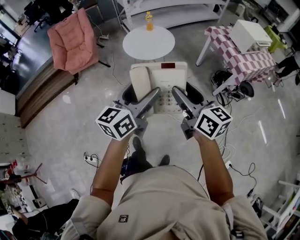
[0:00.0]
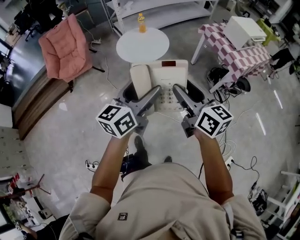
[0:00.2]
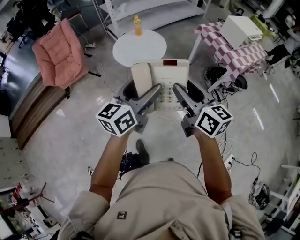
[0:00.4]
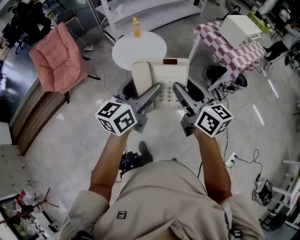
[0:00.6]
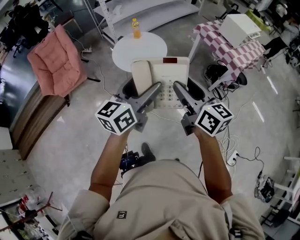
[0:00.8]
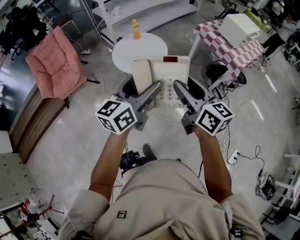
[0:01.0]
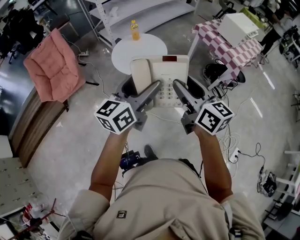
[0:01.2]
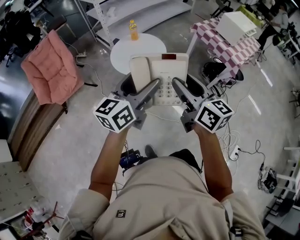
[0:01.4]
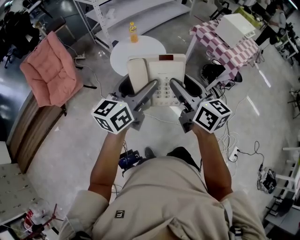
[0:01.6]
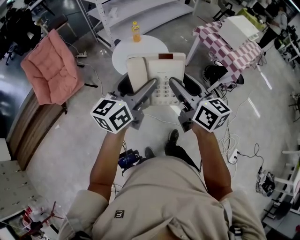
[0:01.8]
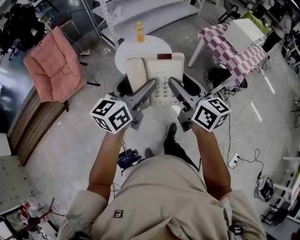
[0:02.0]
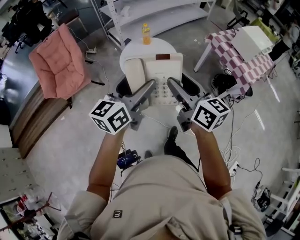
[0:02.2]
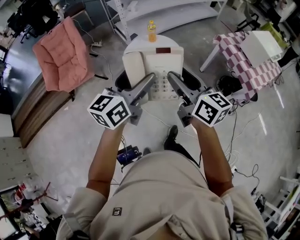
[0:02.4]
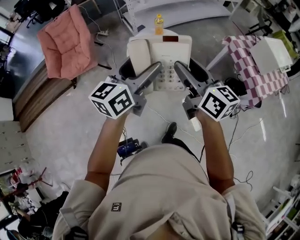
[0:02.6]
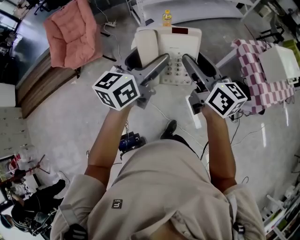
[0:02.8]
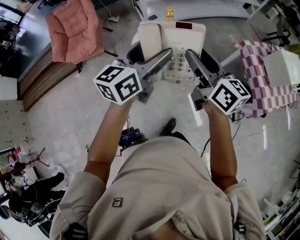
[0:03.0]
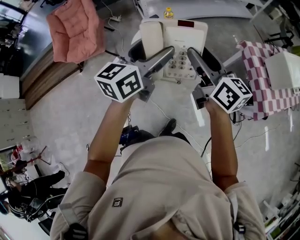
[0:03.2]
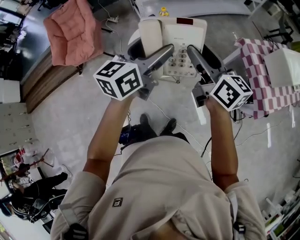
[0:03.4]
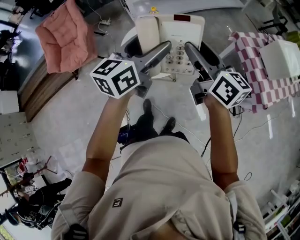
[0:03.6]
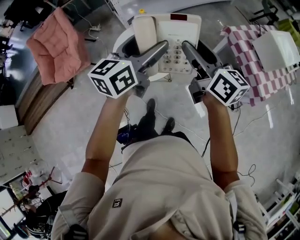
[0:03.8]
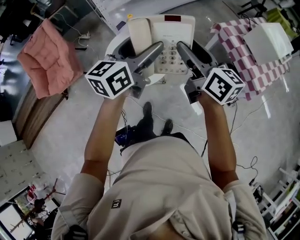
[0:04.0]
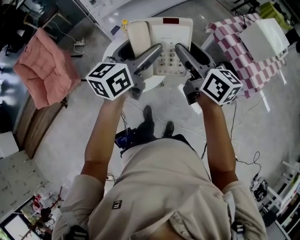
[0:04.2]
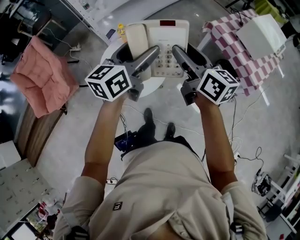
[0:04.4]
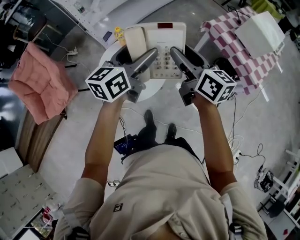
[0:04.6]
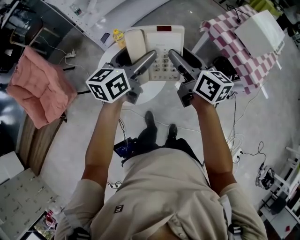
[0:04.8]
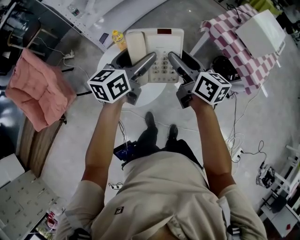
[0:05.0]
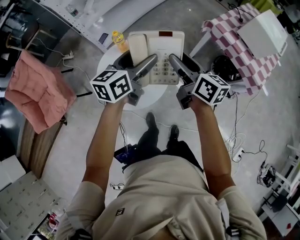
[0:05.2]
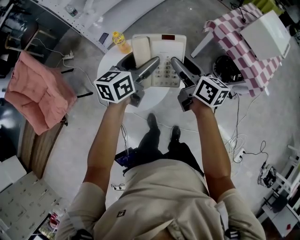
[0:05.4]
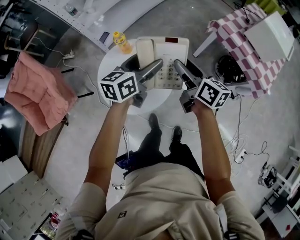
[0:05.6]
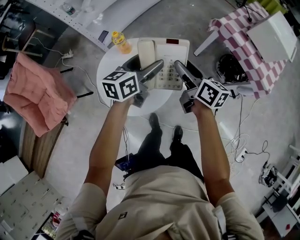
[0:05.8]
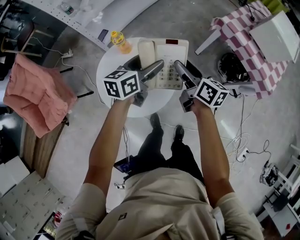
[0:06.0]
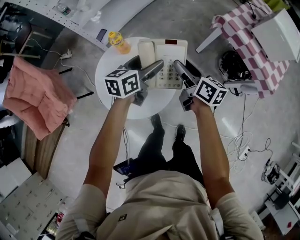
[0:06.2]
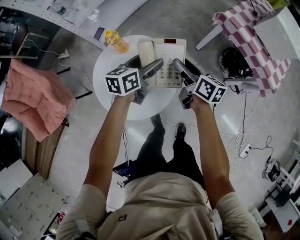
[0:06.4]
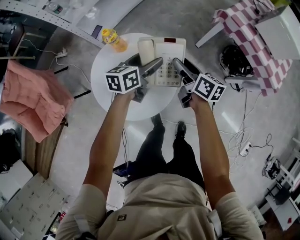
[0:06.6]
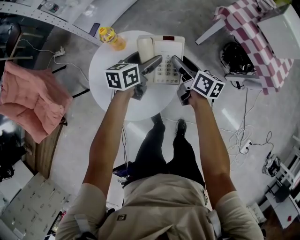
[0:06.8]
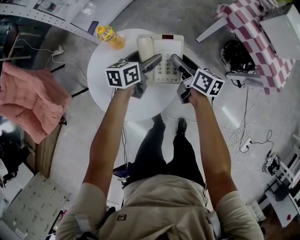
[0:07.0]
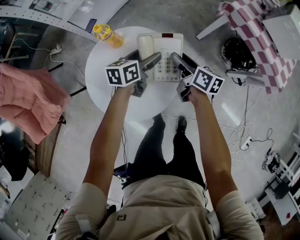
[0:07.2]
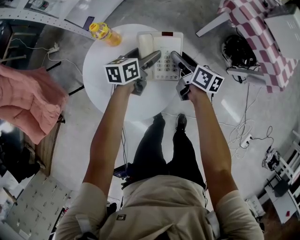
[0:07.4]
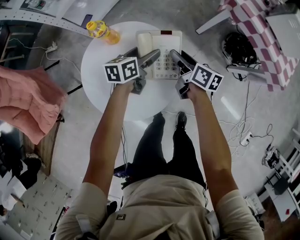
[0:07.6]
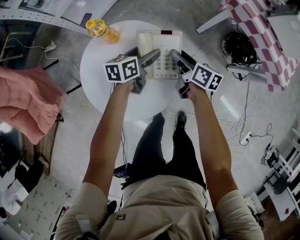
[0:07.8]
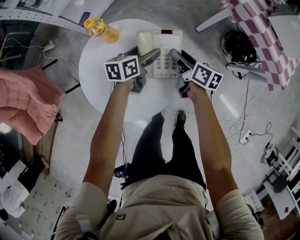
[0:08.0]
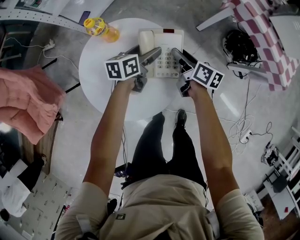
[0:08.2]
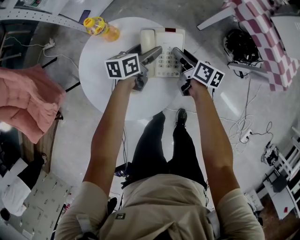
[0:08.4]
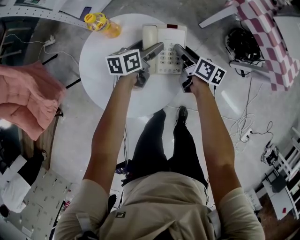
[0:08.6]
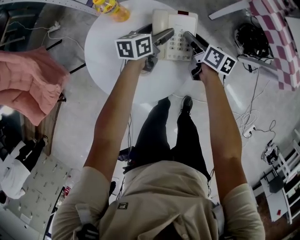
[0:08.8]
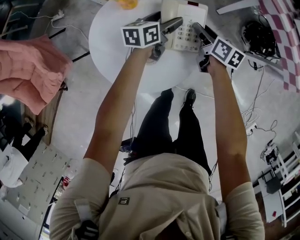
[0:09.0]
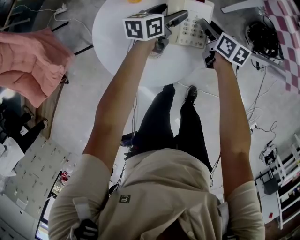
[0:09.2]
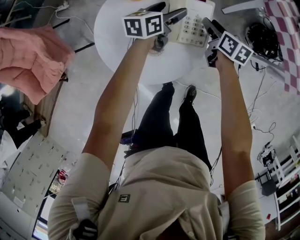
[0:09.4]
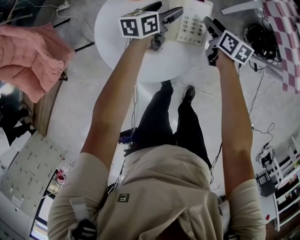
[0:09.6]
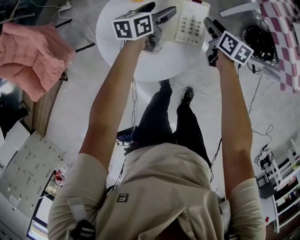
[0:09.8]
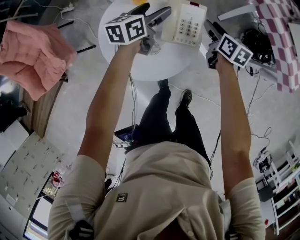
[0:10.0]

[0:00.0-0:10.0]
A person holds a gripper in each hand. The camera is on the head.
0:00.0 to 0:01.4: Both grippers move forward and to the left, roughly 20 cm.
0:01.4 to 0:02.8: Both grippers travel together forward, about 25 cm.
0:02.8 to 0:04.2: The grippers both shift forward and to the right by some 15 cm.
0:04.2 to 0:05.8: Both grippers travel together downward and forward, about 25 cm. The right gripper changes its angle by roughly 20 degrees.
0:05.8 to 0:07.2: Both grippers move downward, roughly 20 cm.
0:07.2 to 0:08.6: Both grippers move downward, about 10 cm.
0:08.6 to 0:10.0: The right gripper shifts about 10 cm upward, and swivels roughly 20 degrees. The left gripper moves upward and to the left, roughly 15 cm.

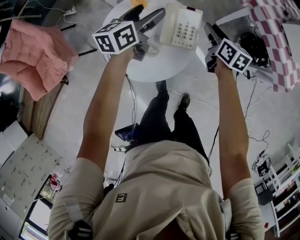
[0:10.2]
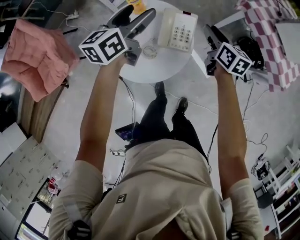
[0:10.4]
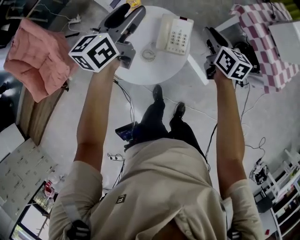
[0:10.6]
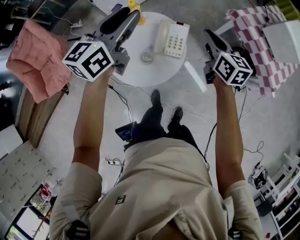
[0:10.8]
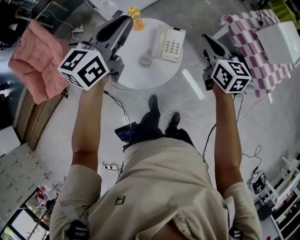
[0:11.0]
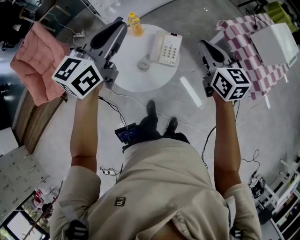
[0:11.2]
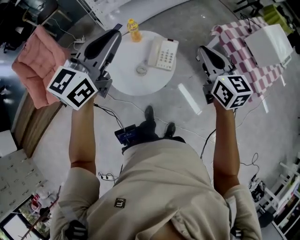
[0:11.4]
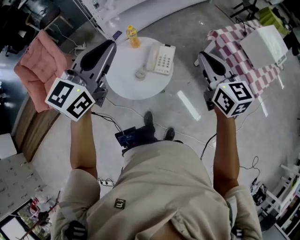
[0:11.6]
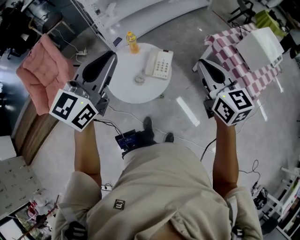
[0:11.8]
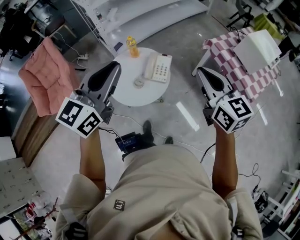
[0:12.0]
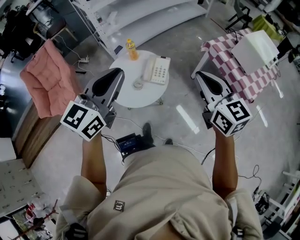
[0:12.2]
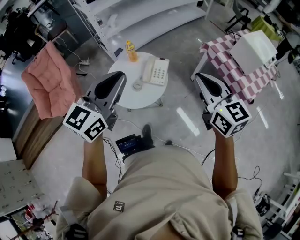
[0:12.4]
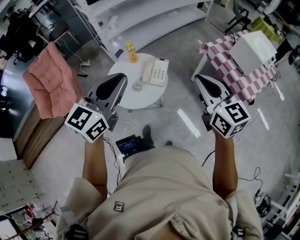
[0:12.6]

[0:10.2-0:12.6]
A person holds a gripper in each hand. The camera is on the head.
0:10.2 to 0:11.4: The two grippers go roughly 40 cm upward and backward. The left gripper changes its angle by roughly 30 degrees, and closes up, while the right gripper turns by roughly 30 degrees, and closes.
0:11.4 to 0:12.6: The right gripper shifts roughly 15 cm backward and upward. The left gripper heads backward and to the right, covering some 15 cm.

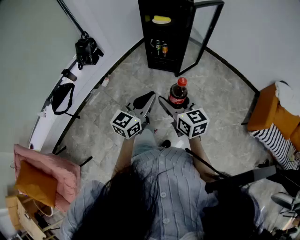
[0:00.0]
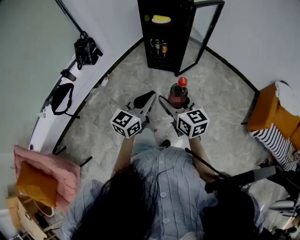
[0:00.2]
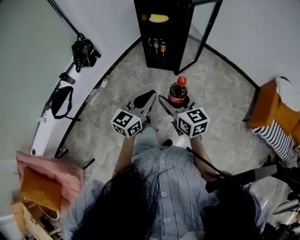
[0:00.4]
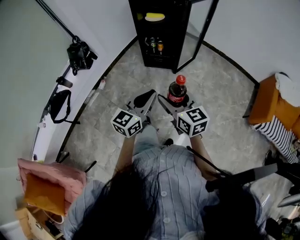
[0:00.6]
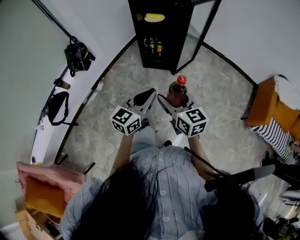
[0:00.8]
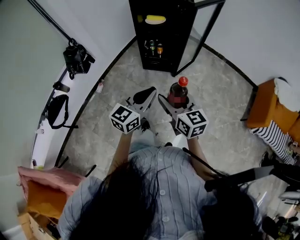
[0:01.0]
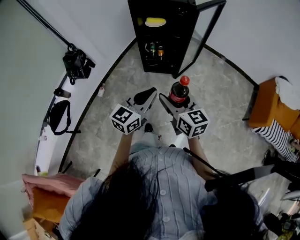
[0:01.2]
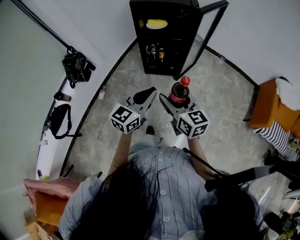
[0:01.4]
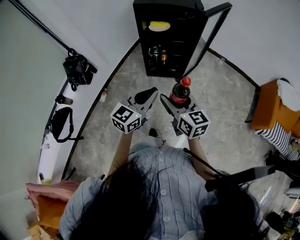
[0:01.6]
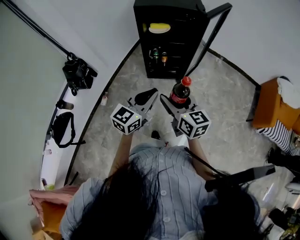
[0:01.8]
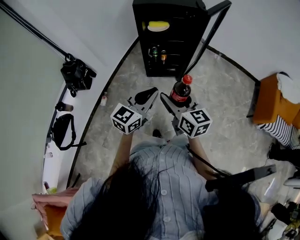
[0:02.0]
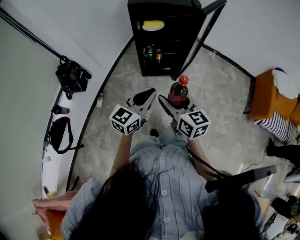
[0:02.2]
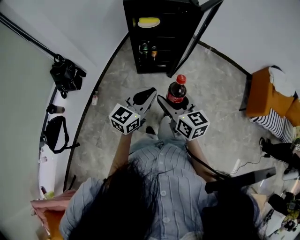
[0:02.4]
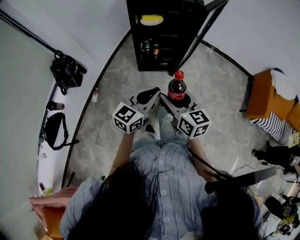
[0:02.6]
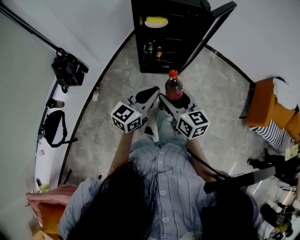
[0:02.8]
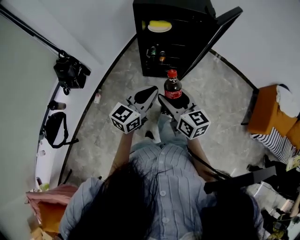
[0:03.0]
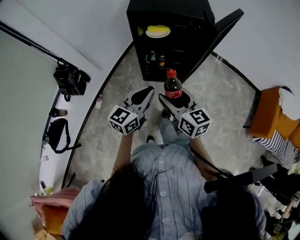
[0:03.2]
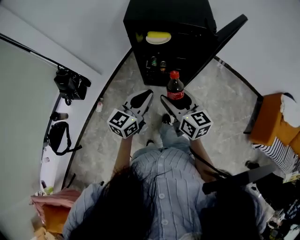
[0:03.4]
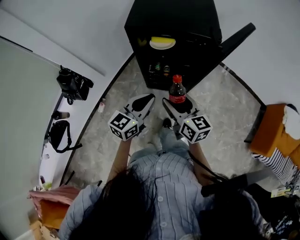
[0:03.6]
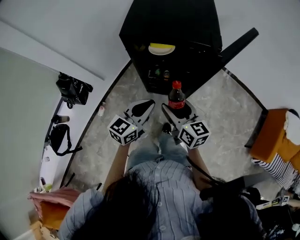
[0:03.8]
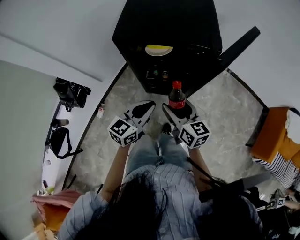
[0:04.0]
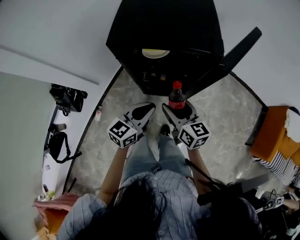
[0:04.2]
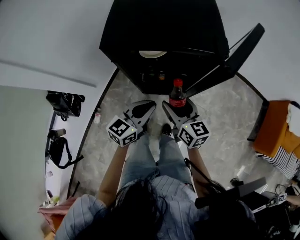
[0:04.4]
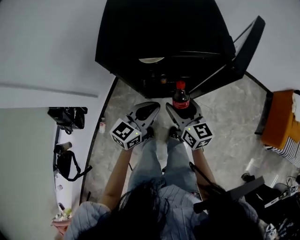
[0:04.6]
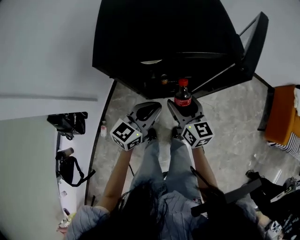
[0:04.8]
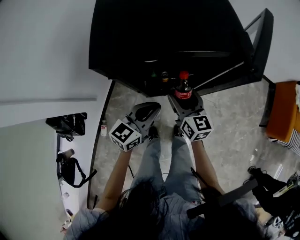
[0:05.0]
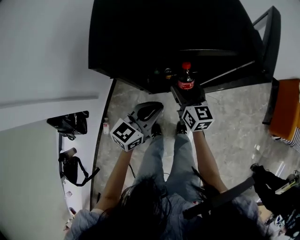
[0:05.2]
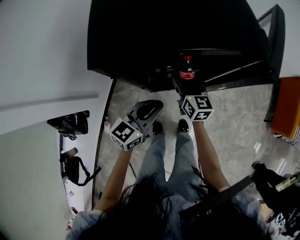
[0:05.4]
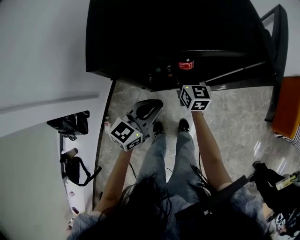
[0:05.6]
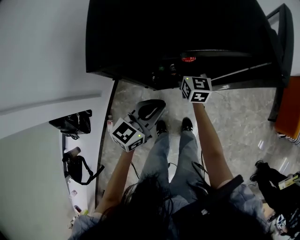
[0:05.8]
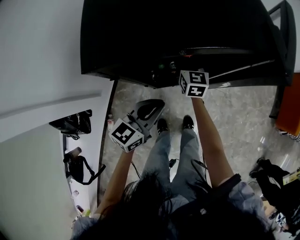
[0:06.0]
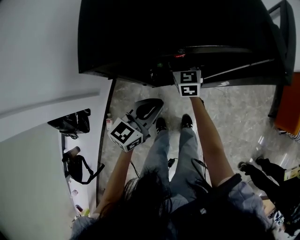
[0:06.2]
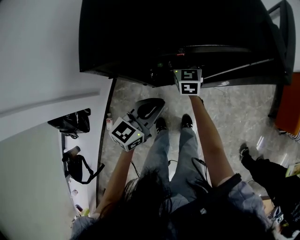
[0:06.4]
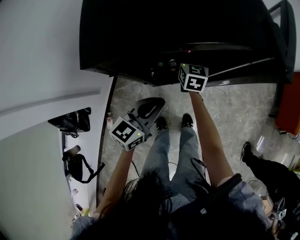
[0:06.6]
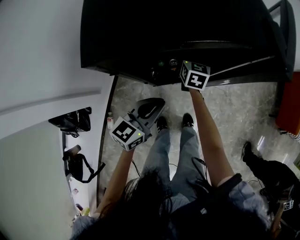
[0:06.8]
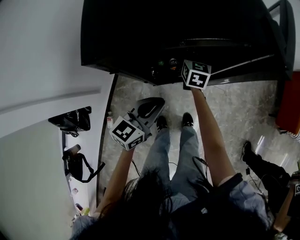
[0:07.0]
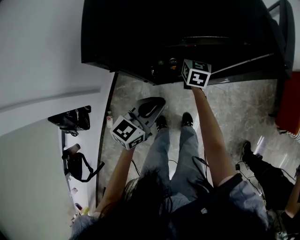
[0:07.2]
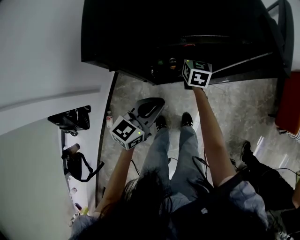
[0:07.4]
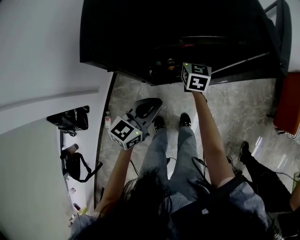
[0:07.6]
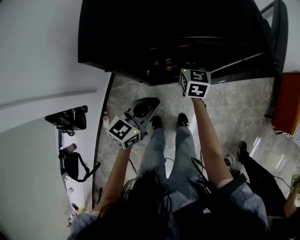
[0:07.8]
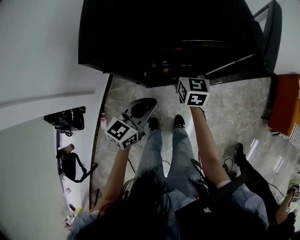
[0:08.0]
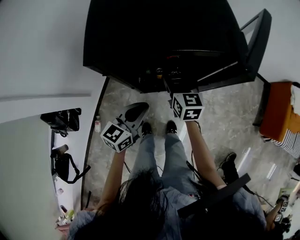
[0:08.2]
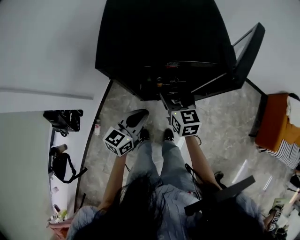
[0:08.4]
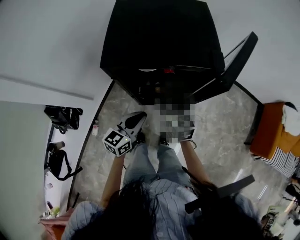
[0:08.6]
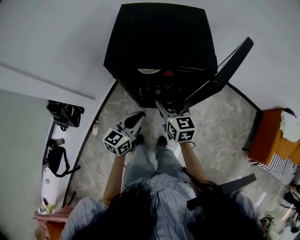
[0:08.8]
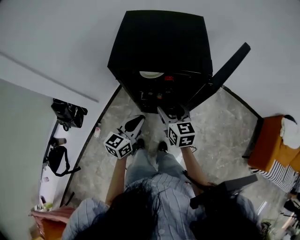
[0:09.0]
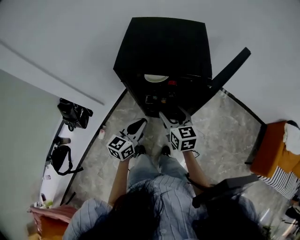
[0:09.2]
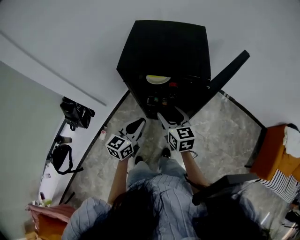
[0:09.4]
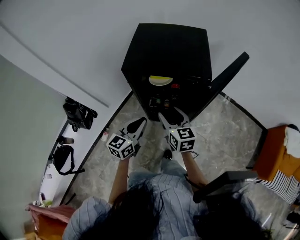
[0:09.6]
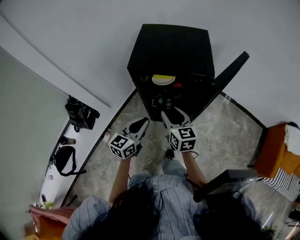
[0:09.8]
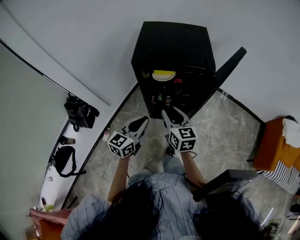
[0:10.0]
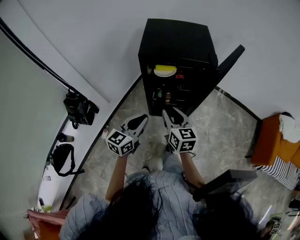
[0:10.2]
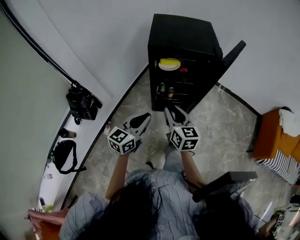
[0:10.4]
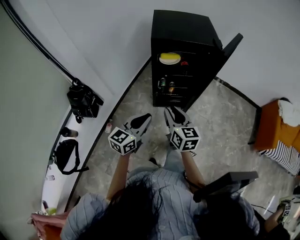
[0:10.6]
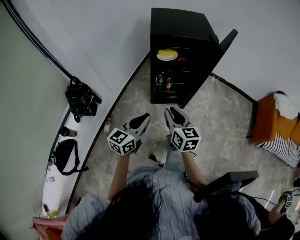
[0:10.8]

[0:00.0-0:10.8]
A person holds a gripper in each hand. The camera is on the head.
0:00.0 to 0:01.6: Both grippers travel together forward and to the left, about 25 cm.
0:01.6 to 0:03.0: The two grippers go about 10 cm forward.
0:03.0 to 0:04.6: The two grippers go some 25 cm forward.
0:04.6 to 0:06.2: The right gripper travels forward, downward and to the left by about 25 cm, and turns by about 30 degrees, while the left gripper is displaced downward and to the left by roughly 10 cm.
0:06.2 to 0:07.8: The right gripper is displaced to the right by about 5 cm.
0:07.8 to 0:09.2: The left gripper heads upward, covering some 15 cm, and swivels approximately 20 degrees; the right gripper ends up about 25 cm from where it was, and changes its angle by roughly 30 degrees.
0:09.2 to 0:10.8: Both grippers travel together backward and to the left, about 30 cm. The right gripper closes up.
